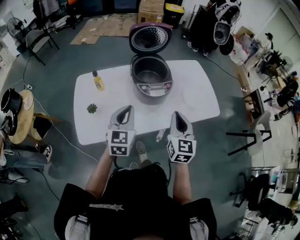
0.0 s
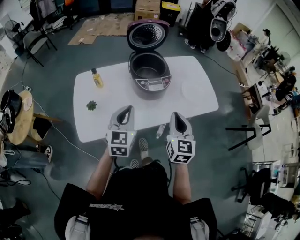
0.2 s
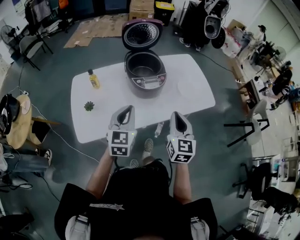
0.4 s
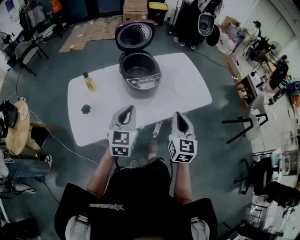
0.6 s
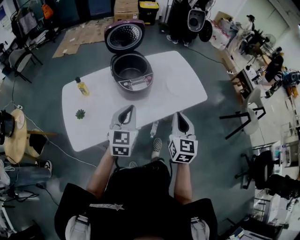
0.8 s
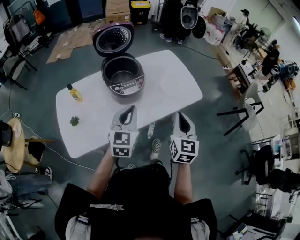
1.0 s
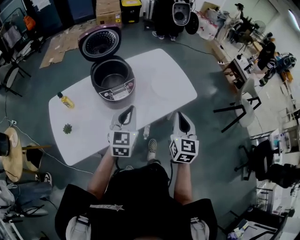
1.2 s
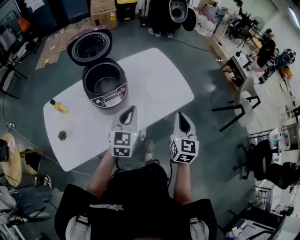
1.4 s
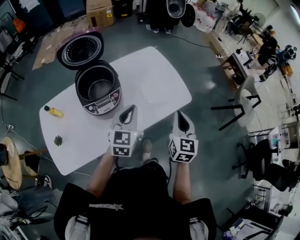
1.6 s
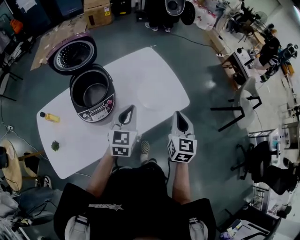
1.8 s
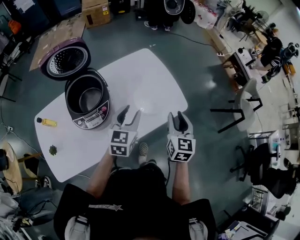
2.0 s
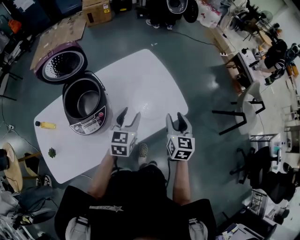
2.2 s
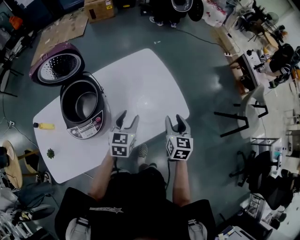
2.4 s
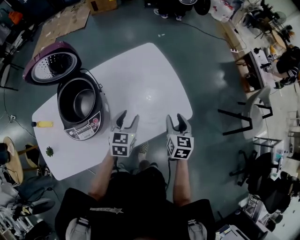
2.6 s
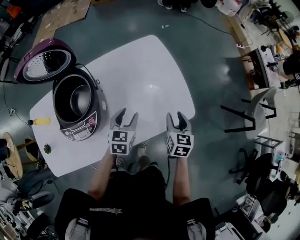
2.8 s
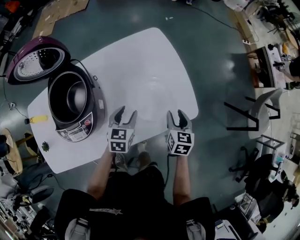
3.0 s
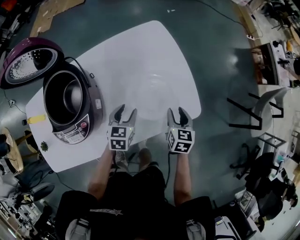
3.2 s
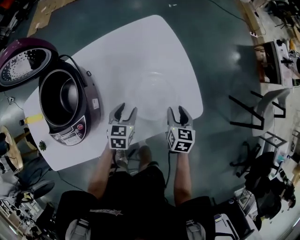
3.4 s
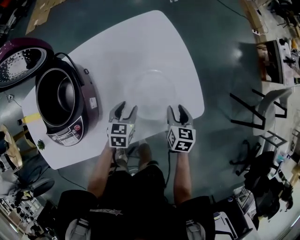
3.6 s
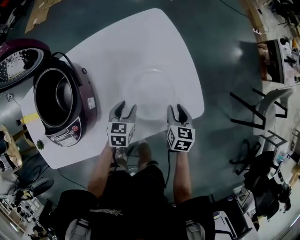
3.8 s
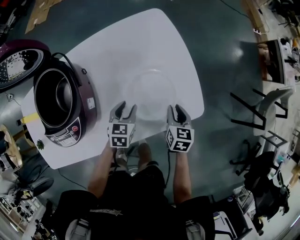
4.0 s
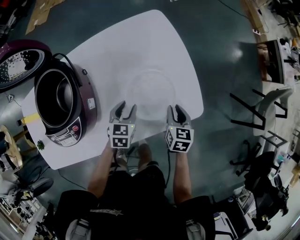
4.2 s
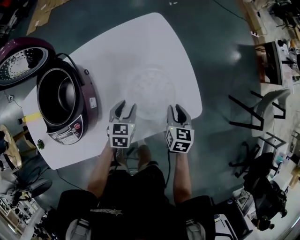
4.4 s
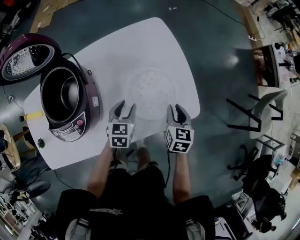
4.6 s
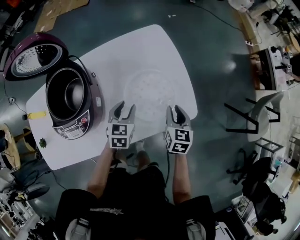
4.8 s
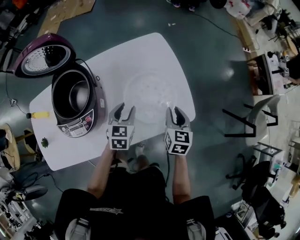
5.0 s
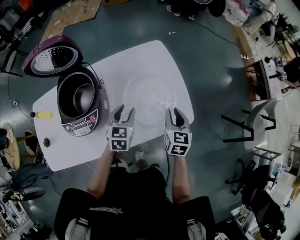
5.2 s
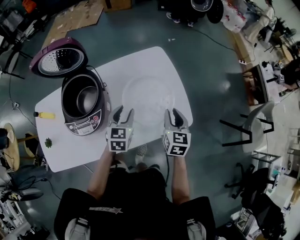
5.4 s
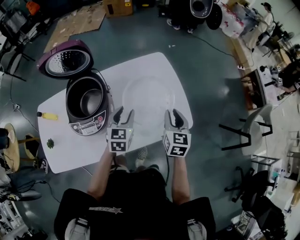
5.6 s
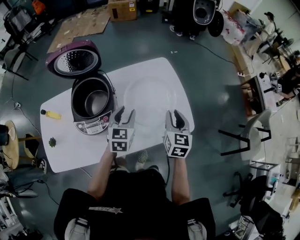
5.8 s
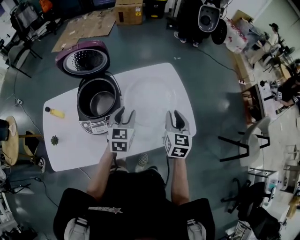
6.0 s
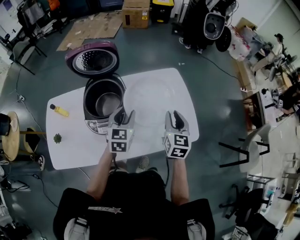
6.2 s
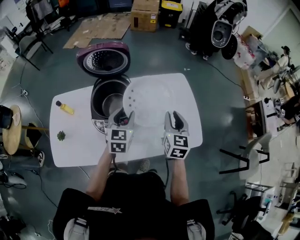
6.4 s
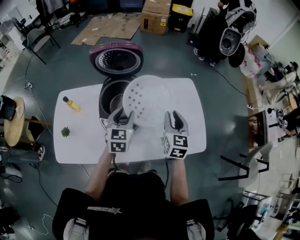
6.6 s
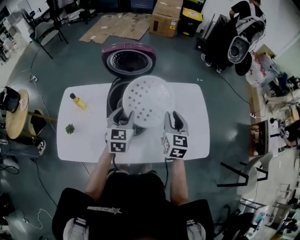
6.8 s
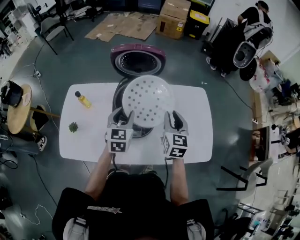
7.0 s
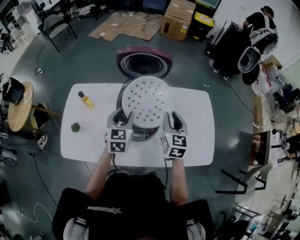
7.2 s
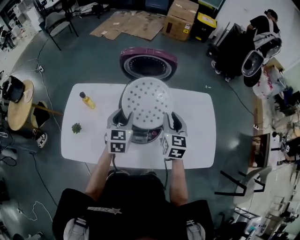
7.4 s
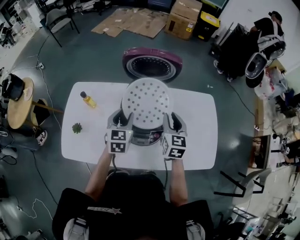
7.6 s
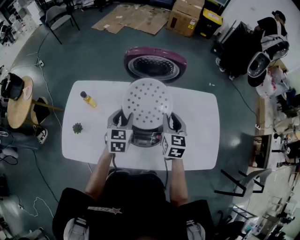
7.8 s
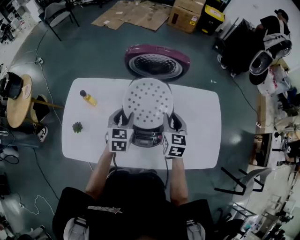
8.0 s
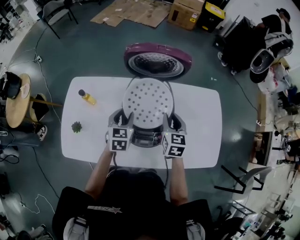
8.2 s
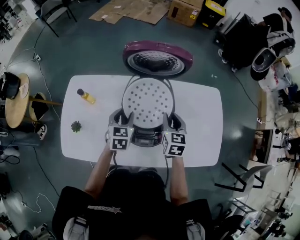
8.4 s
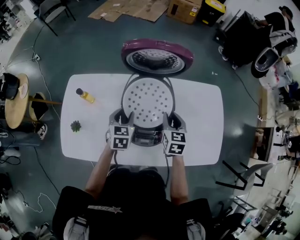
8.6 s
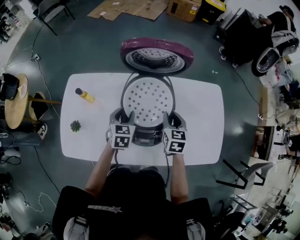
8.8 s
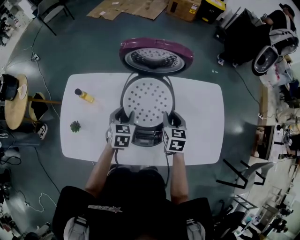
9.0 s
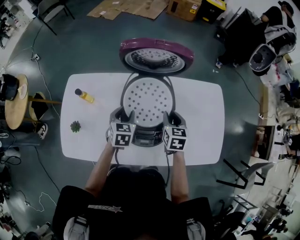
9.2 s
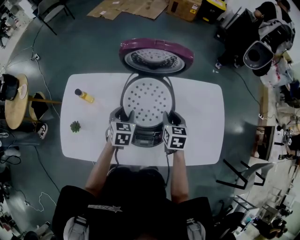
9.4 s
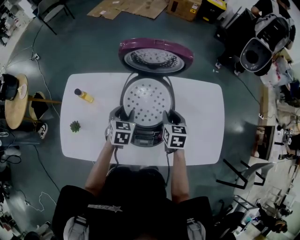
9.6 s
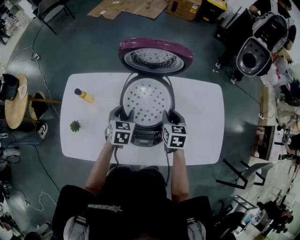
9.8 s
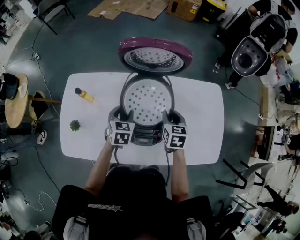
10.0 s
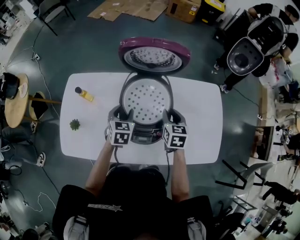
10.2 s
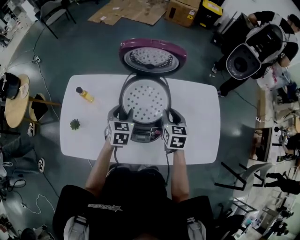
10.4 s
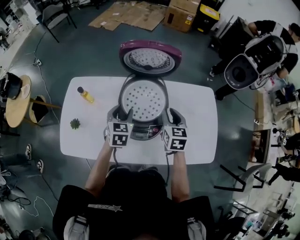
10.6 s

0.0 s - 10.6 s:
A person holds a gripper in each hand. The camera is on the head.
0.0 s - 1.6 s: The right gripper is displaced to the right by some 25 cm. Meanwhile the left gripper goes approximately 30 cm to the right and forward, and swivels roughly 20 degrees.
1.6 s - 3.0 s: The grippers both shift downward and forward by some 30 cm. The right gripper rotates some 30 degrees, and opens, while the left gripper turns by about 30 degrees, and opens its fingers.
3.0 s - 4.6 s: The right gripper moves roughly 10 cm downward and comes back.
4.6 s - 6.0 s: Both grippers travel together upward, about 20 cm. The right gripper swivels some 20 degrees.
6.0 s - 7.6 s: The right gripper is displaced to the left and forward by about 30 cm, and turns by roughly 20 degrees. Meanwhile the left gripper heads to the left, covering about 25 cm.
7.6 s - 9.0 s: The grippers both shift downward by about 10 cm.
9.0 s - 10.6 s: Both grippers move upward, some 5 cm.

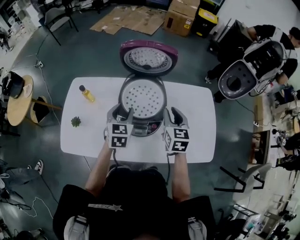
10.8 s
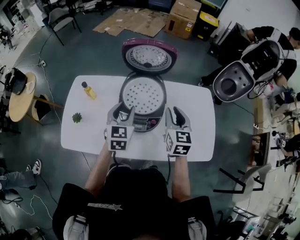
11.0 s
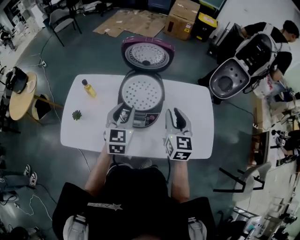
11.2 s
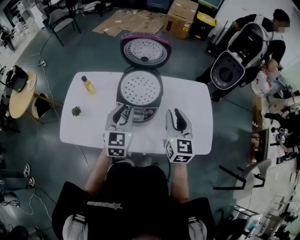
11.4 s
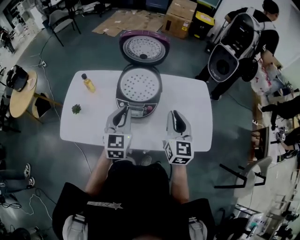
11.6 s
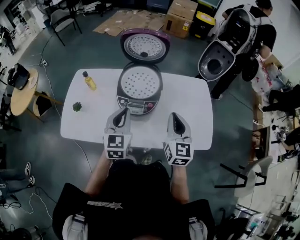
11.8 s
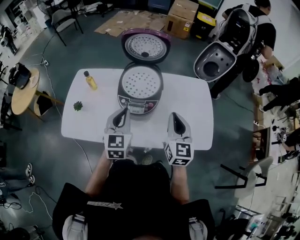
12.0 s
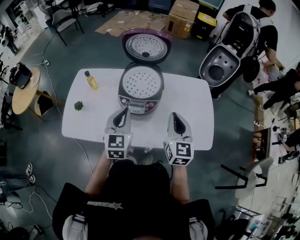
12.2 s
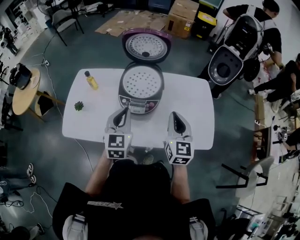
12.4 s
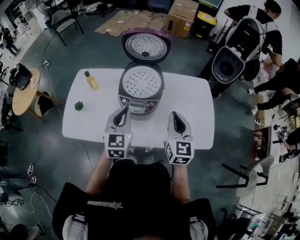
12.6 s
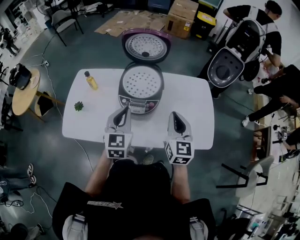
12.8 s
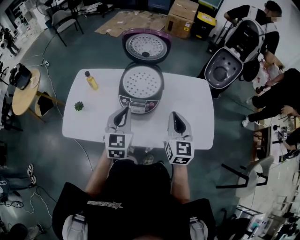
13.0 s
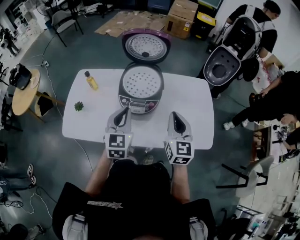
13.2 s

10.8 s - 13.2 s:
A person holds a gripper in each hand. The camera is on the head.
10.8 s - 12.0 s: The two grippers go roughly 15 cm backward. The left gripper closes its fingers, while the right gripper closes its fingers.
12.0 s - 13.2 s: Both grippers stay put.

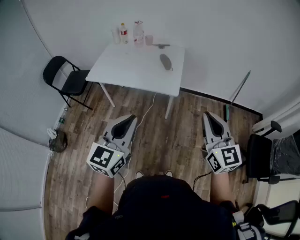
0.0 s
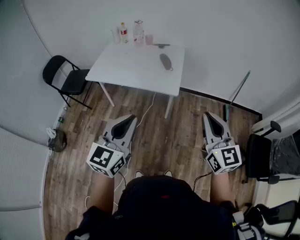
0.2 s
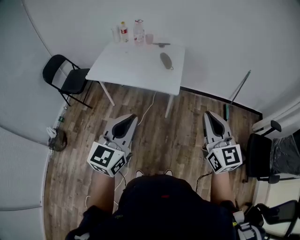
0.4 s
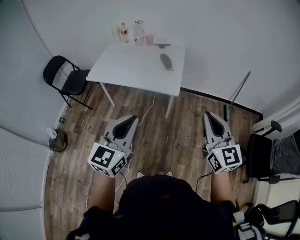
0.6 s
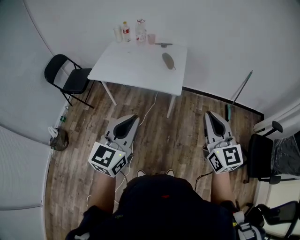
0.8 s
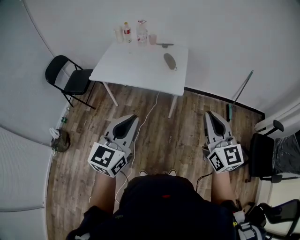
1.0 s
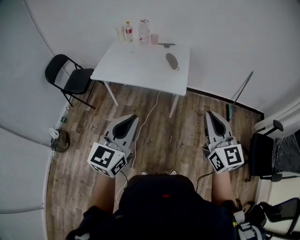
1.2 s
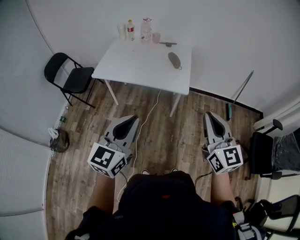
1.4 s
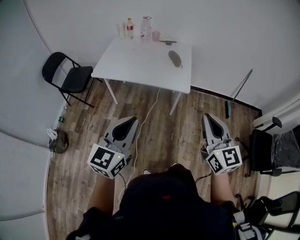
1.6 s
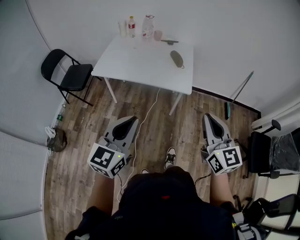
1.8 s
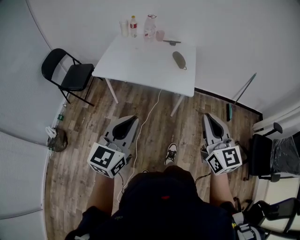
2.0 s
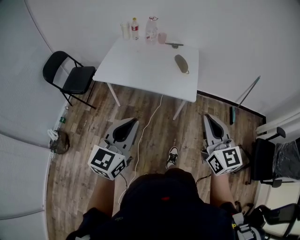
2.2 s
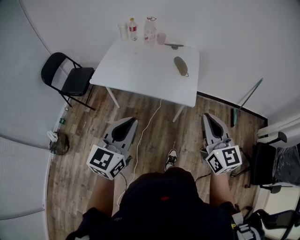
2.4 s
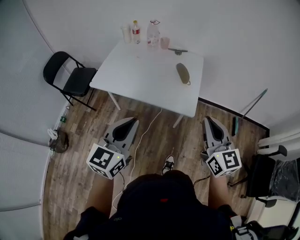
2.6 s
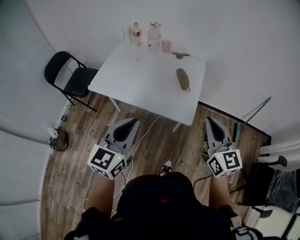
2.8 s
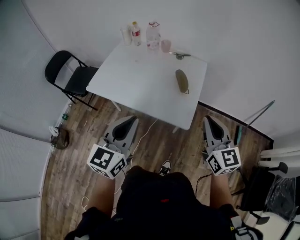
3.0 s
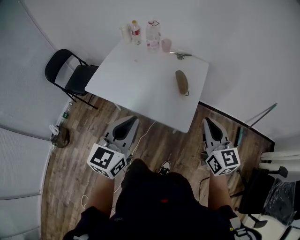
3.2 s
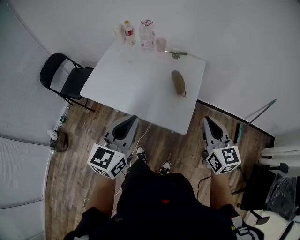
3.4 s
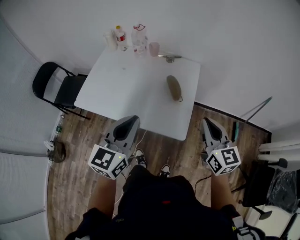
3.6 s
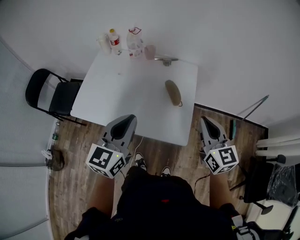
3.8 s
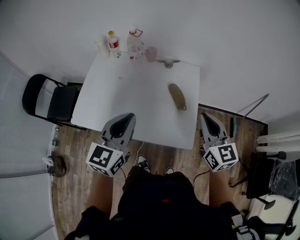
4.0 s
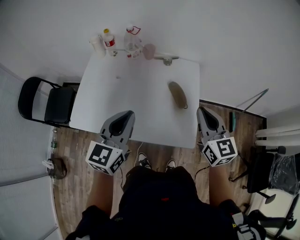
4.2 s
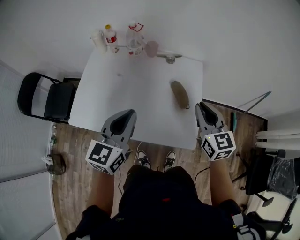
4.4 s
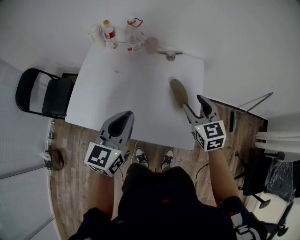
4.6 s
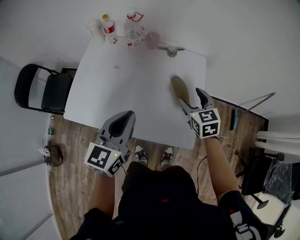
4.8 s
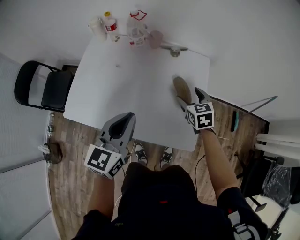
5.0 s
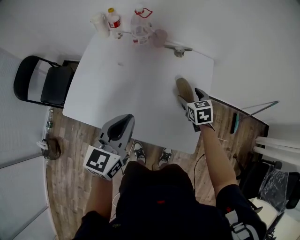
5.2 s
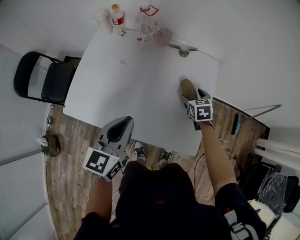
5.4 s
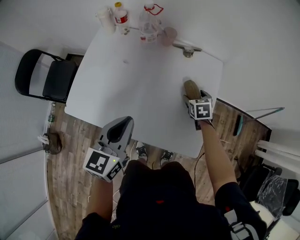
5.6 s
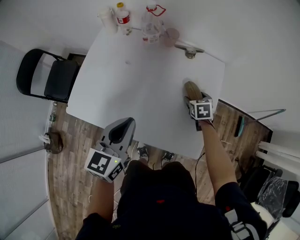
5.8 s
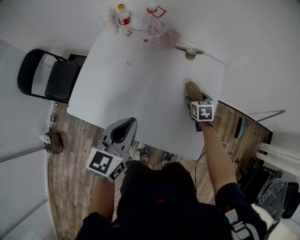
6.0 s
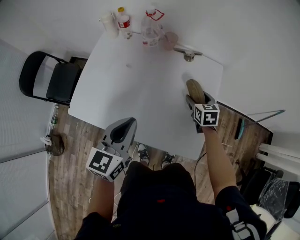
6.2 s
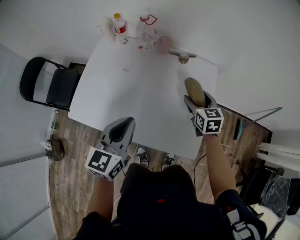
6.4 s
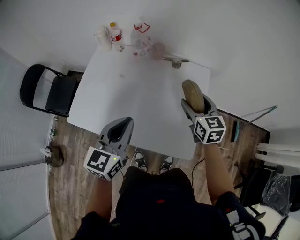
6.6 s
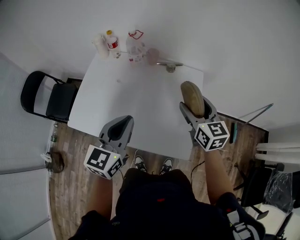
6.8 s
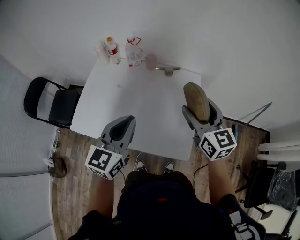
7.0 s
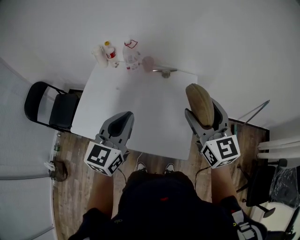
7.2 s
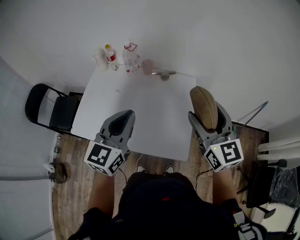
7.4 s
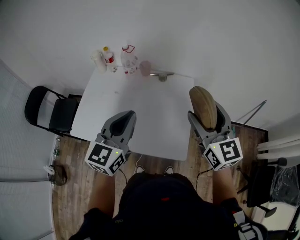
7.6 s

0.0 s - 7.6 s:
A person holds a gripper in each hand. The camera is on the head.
0.0 s - 1.6 s: Both grippers move to the left, some 10 cm.
1.6 s - 3.0 s: Both grippers move forward, roughly 30 cm.
3.0 s - 4.6 s: The right gripper is displaced forward and downward by roughly 30 cm, swivels some 20 degrees, and opens up. The left gripper goes about 25 cm forward.
4.6 s - 6.0 s: The left gripper travels downward by about 5 cm; the right gripper goes roughly 25 cm downward and forward, and changes its angle by roughly 30 degrees.
6.0 s - 7.6 s: The right gripper heads upward and backward, covering about 50 cm, and tilts its fingers roughly 50 degrees upward; the left gripper moves upward and to the right, roughly 20 cm.

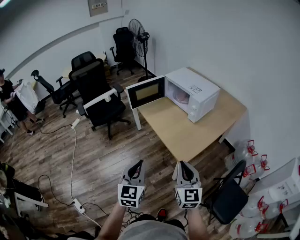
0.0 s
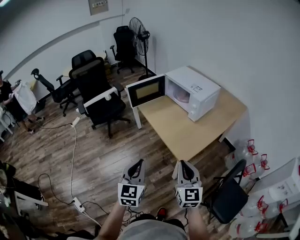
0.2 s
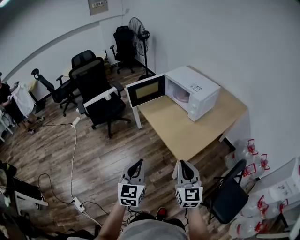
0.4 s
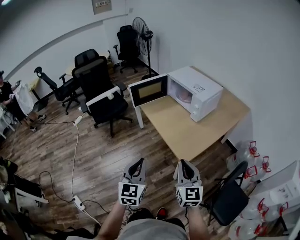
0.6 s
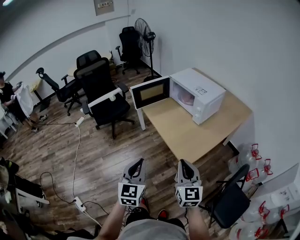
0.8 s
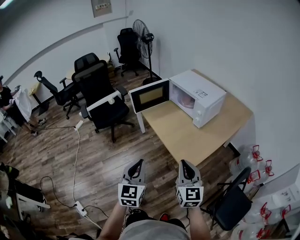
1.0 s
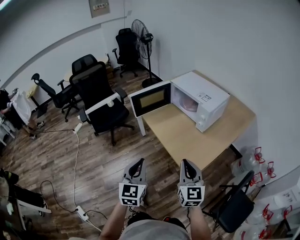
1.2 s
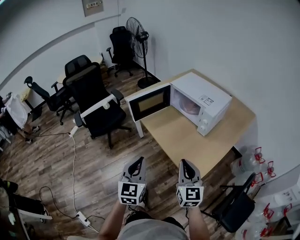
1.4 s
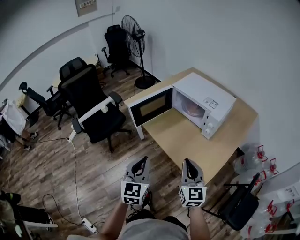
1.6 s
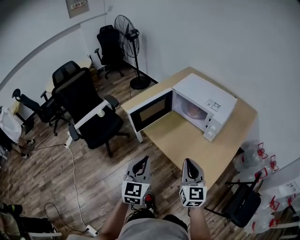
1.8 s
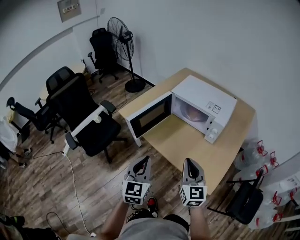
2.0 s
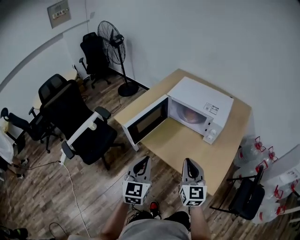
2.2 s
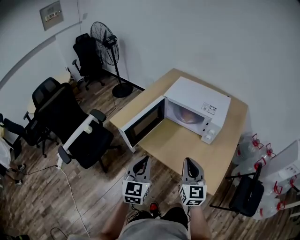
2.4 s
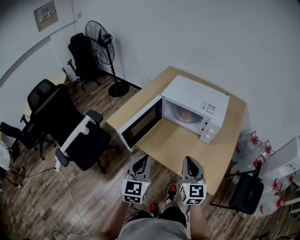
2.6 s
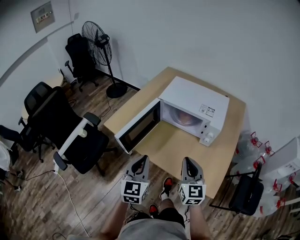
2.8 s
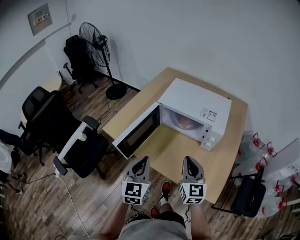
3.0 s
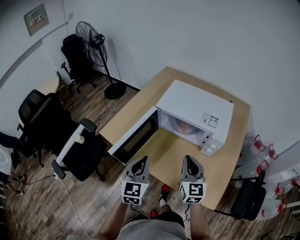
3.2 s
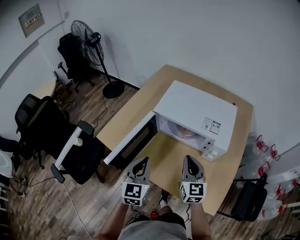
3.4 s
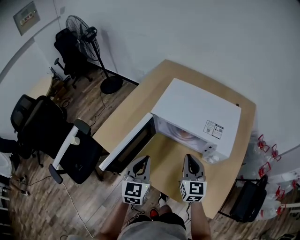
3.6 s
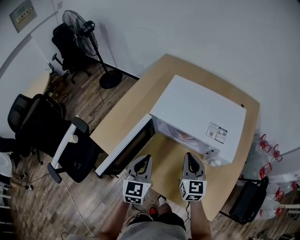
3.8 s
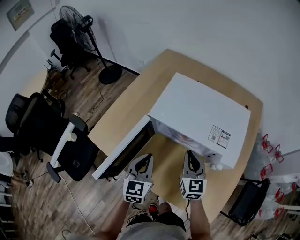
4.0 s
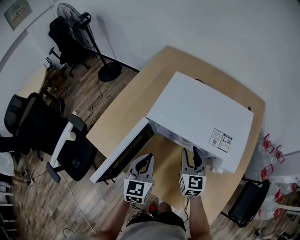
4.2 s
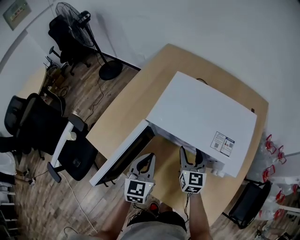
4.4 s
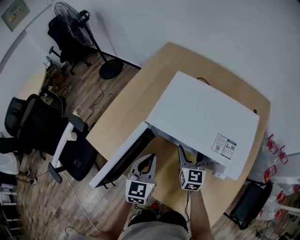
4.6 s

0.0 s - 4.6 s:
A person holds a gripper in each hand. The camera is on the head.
0.0 s - 1.6 s: The grippers both shift forward by about 25 cm.
1.6 s - 3.0 s: The two grippers go roughly 20 cm forward.
3.0 s - 4.6 s: Both grippers travel together forward and downward, about 30 cm. The right gripper opens.
